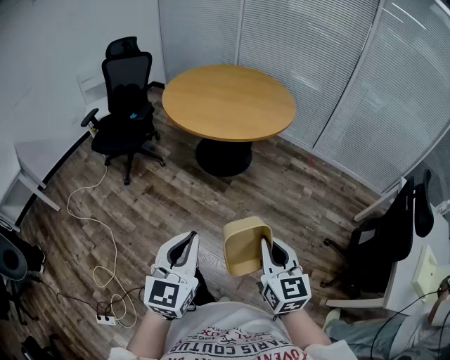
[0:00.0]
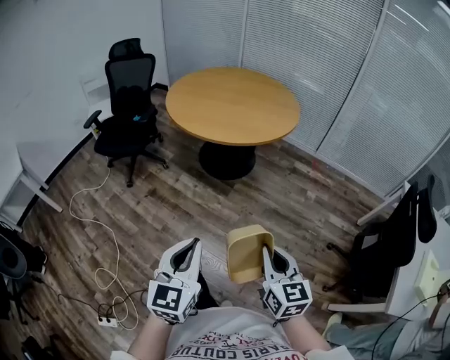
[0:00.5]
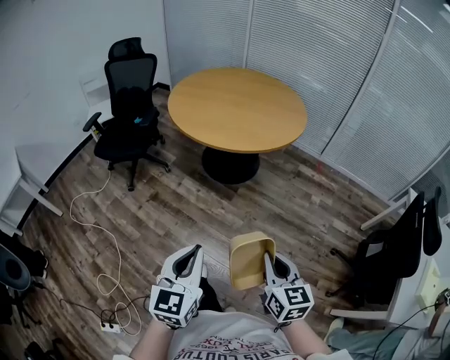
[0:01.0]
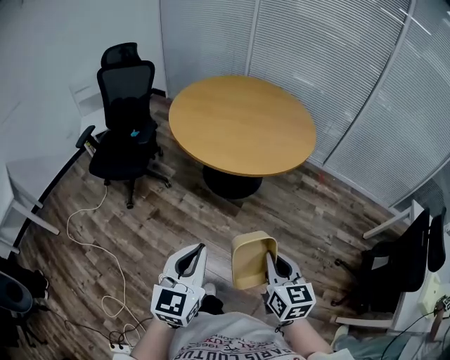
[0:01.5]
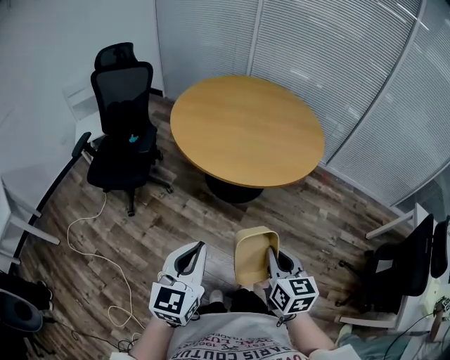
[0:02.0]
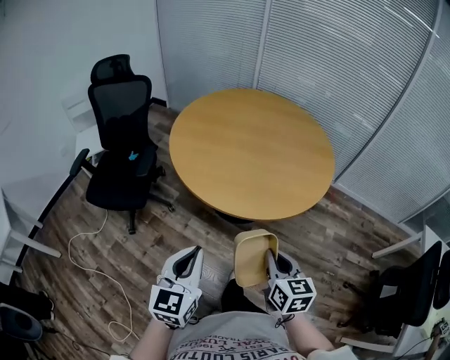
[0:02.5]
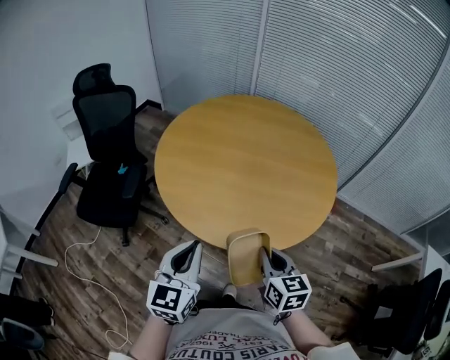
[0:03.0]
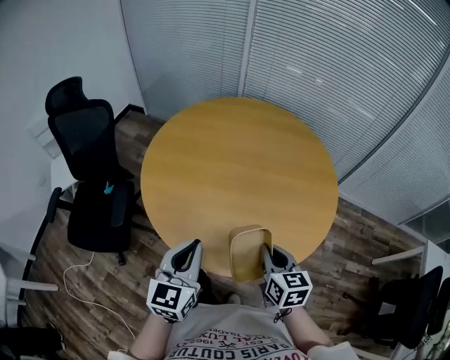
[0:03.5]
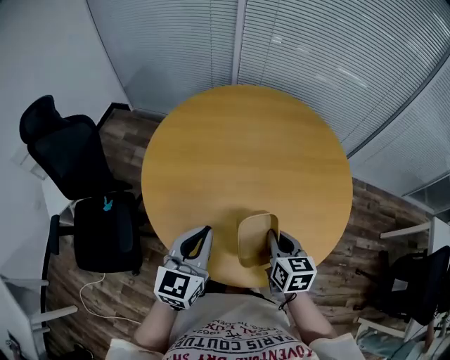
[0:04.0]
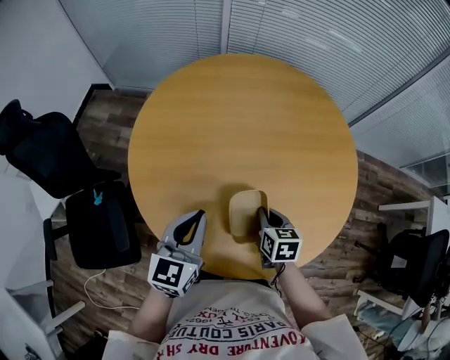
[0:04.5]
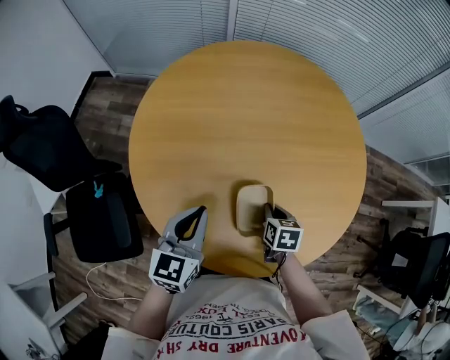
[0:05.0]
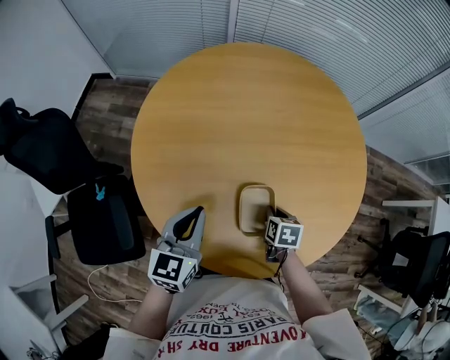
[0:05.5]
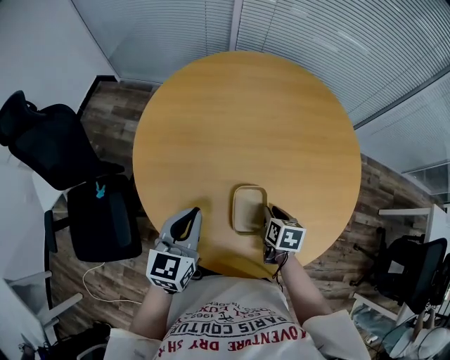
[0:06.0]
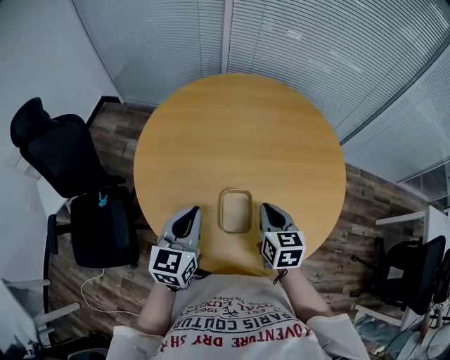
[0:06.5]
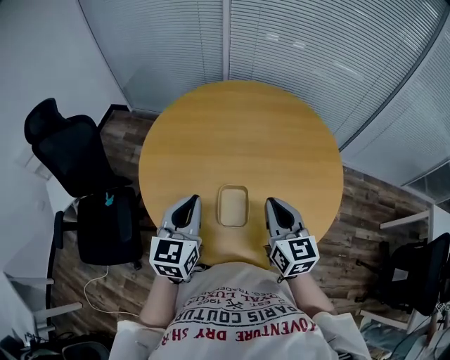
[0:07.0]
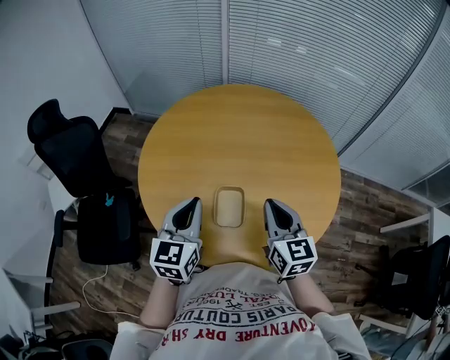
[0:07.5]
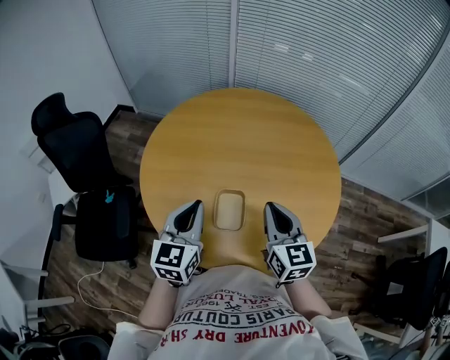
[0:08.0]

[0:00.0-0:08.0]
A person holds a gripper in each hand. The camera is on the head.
0:00.0 to 0:02.0: The two grippers go roughly 30 cm forward and to the left.
0:02.0 to 0:04.0: The pair of grippers is taken forward, roughly 60 cm.
0:04.0 to 0:06.0: The right gripper travels downward and forward by approximately 15 cm, changes its angle by roughly 20 degrees, and opens its fingers, while the left gripper goes approximately 10 cm downward, forward and to the left.
0:06.0 to 0:08.0: The left gripper moves upward, to the right and backward, roughly 15 cm. The right gripper moves upward, roughly 25 cm, tips its fingers upward by some 40 degrees, and closes.

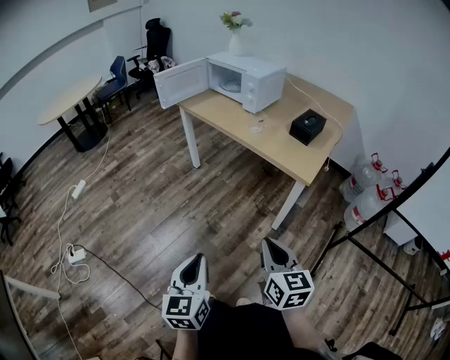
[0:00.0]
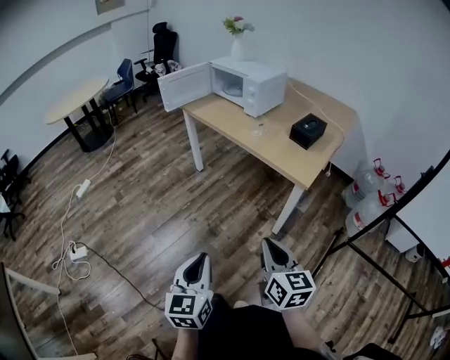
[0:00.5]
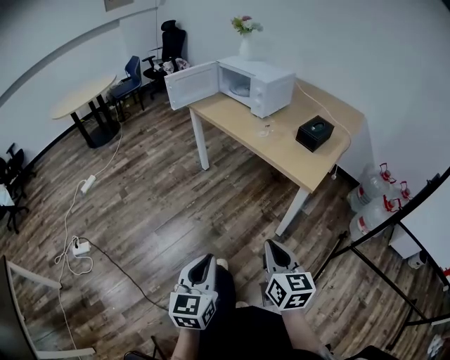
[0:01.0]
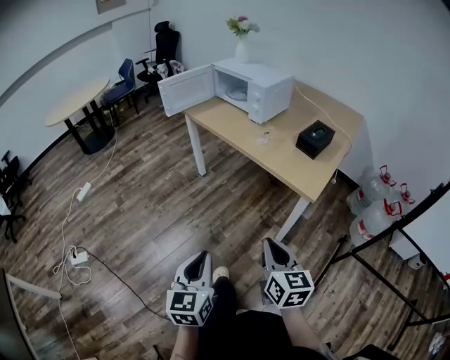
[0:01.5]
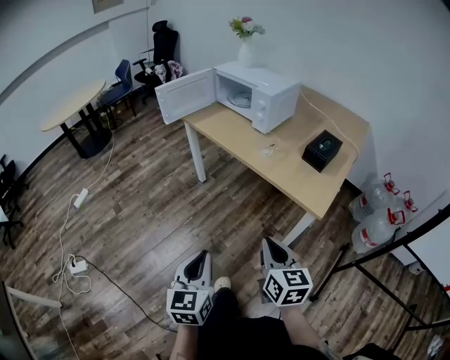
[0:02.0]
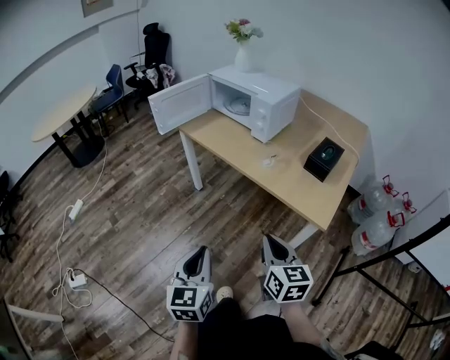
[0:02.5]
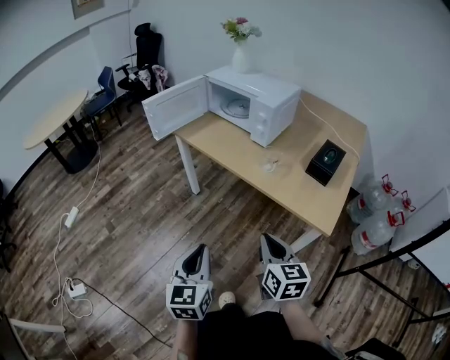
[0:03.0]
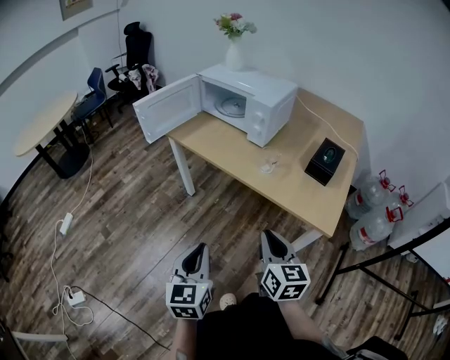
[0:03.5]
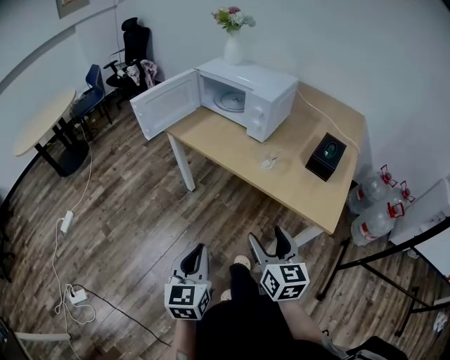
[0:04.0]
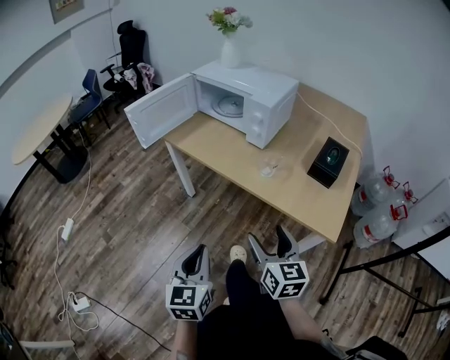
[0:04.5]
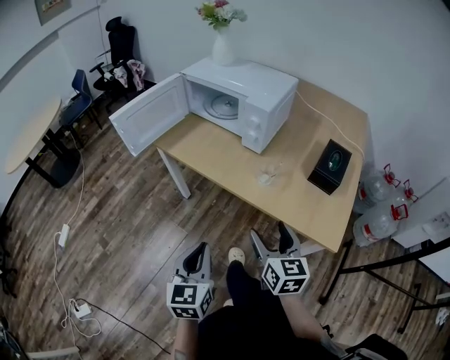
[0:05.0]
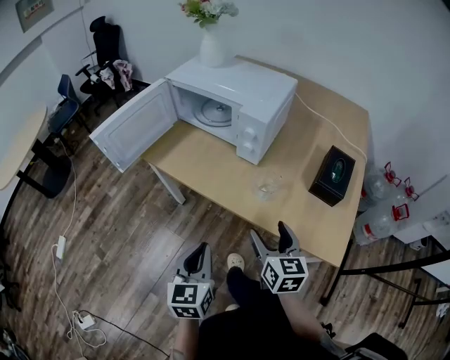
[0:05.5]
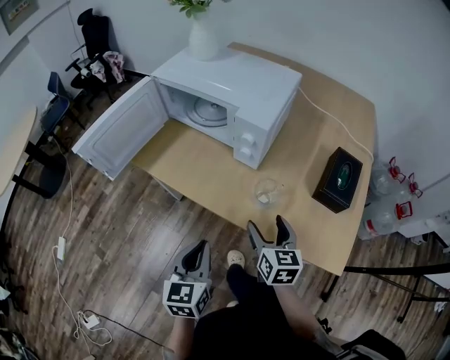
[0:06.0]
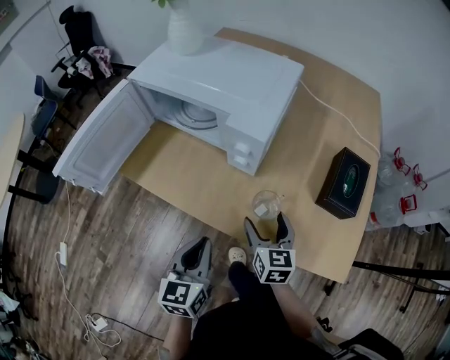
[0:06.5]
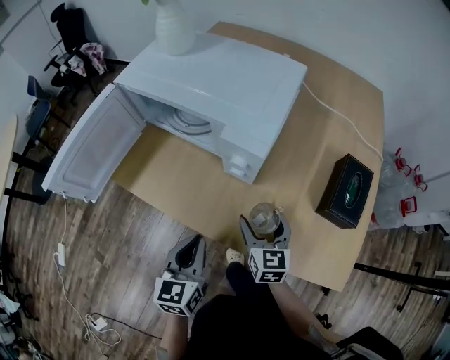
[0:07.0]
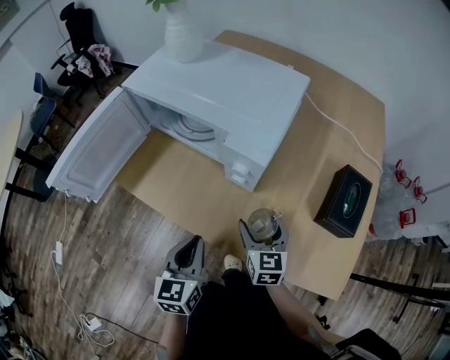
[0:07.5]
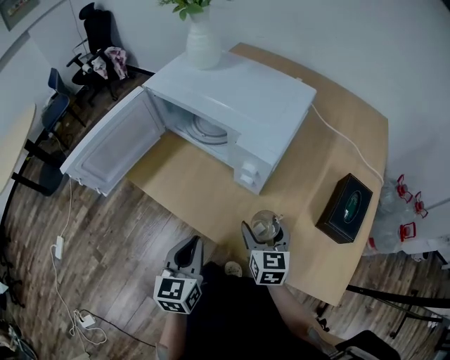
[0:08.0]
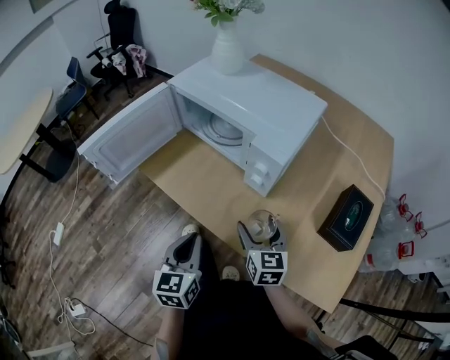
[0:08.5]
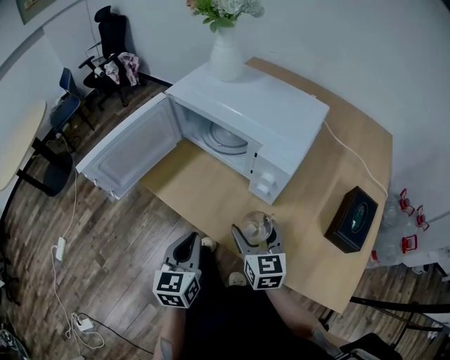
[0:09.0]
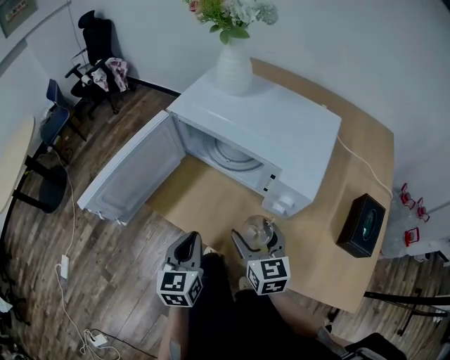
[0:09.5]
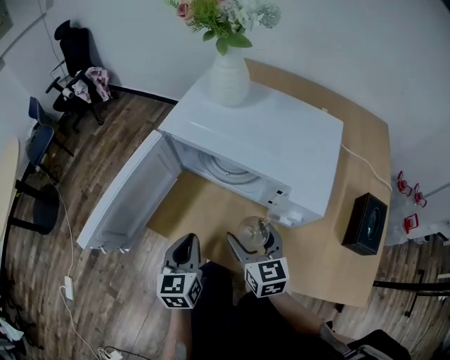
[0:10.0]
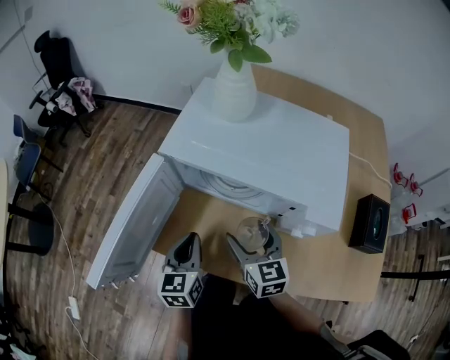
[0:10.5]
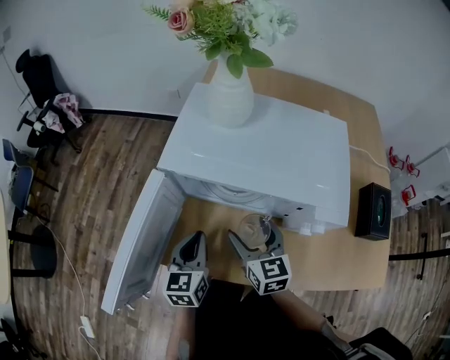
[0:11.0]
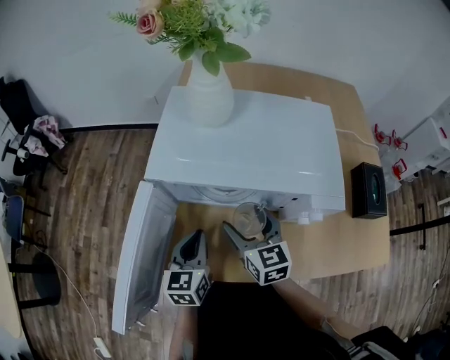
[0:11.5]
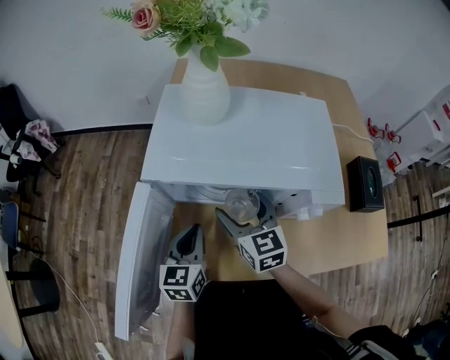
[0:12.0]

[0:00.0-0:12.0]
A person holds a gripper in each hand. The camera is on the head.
0:00.0 to 0:02.0: The grippers both shift forward by roughly 15 cm.
0:02.0 to 0:04.0: The grippers both shift forward by some 15 cm. The right gripper opens.
0:04.0 to 0:06.0: Both grippers travel together forward, about 30 cm.
0:06.0 to 0:08.0: The grippers both shift forward by approximately 10 cm.
0:08.0 to 0:10.0: The left gripper travels forward and to the left by some 20 cm, while the right gripper goes some 20 cm to the left and forward.
0:10.0 to 0:12.0: The left gripper heads forward, covering roughly 15 cm, and rotates approximately 30 degrees. Meanwhile the right gripper moves forward and to the left, approximately 15 cm.

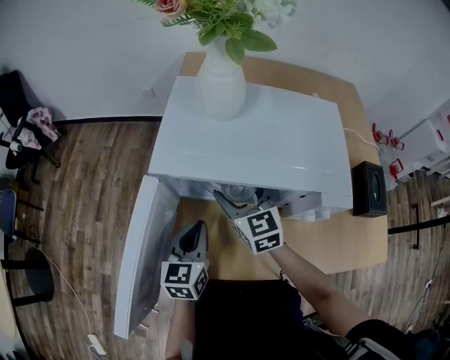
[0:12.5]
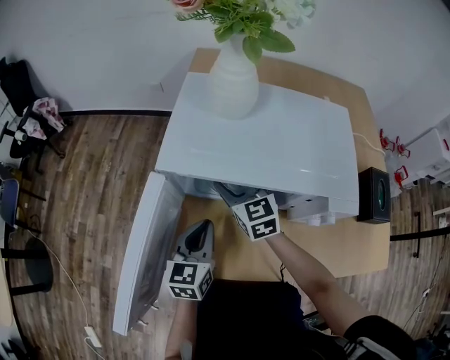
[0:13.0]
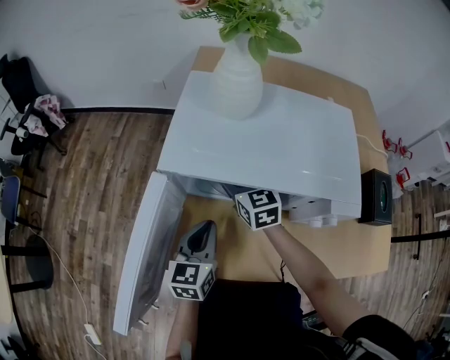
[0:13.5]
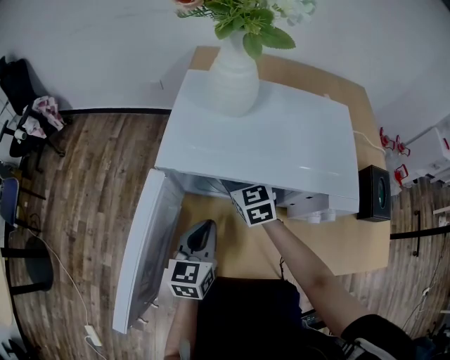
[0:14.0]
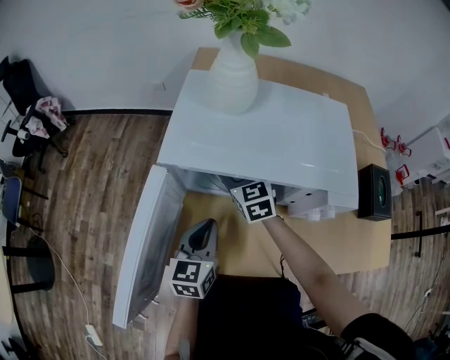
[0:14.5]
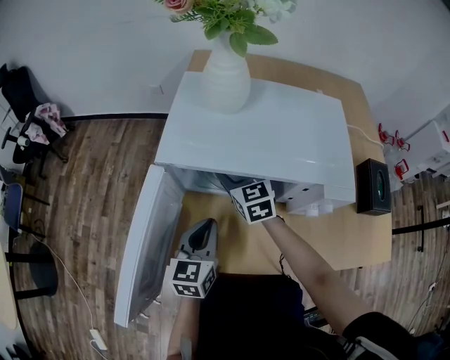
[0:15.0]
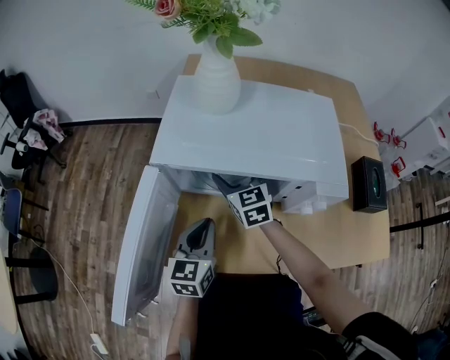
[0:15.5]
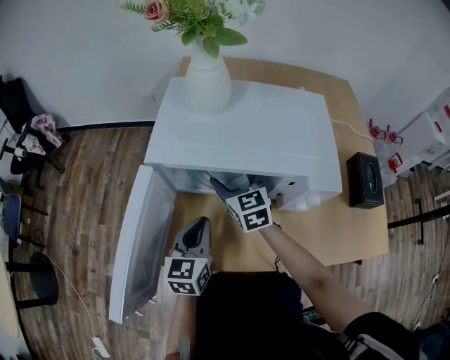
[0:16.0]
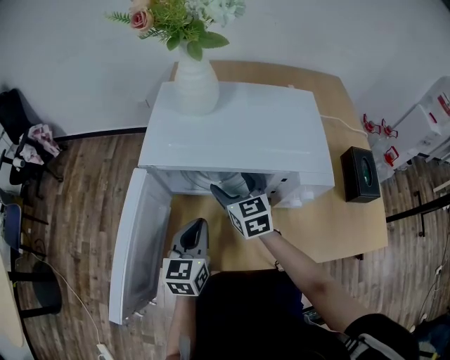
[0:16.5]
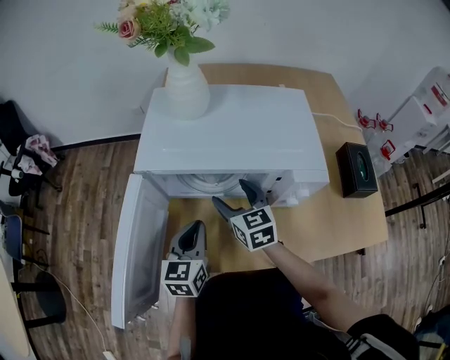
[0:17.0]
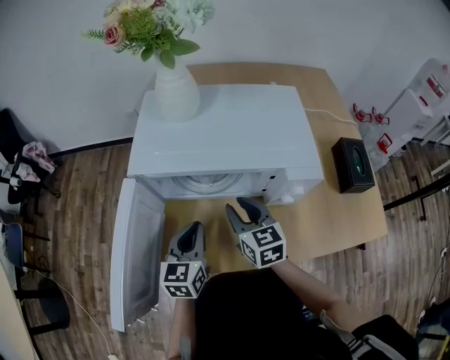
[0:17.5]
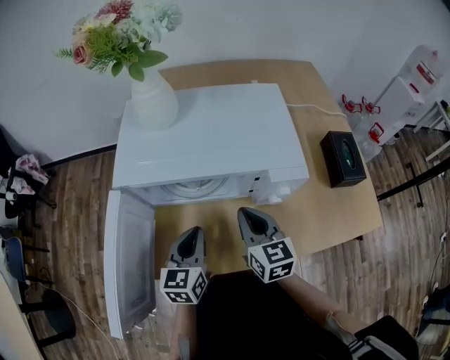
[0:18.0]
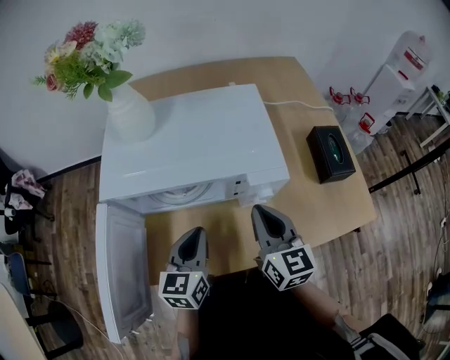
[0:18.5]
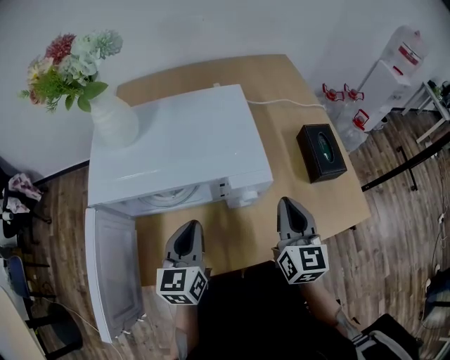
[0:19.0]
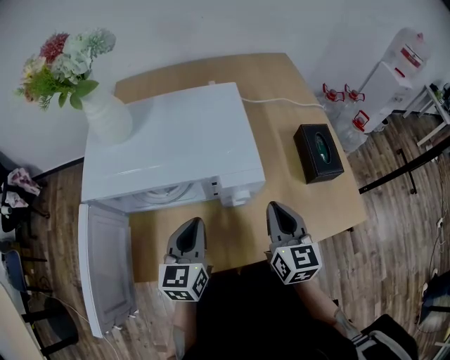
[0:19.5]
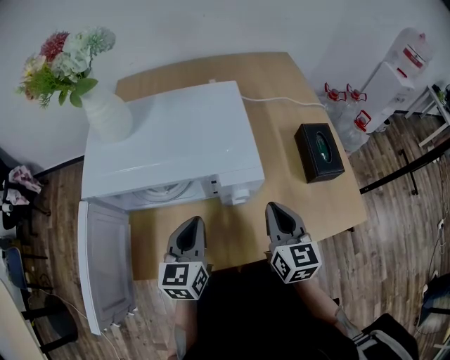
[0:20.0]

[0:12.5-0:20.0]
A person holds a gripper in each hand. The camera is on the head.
0:12.5 to 0:14.5: The right gripper heads forward, covering about 5 cm.
0:14.5 to 0:16.5: The right gripper travels backward by some 5 cm.
0:16.5 to 0:18.0: The right gripper goes about 15 cm backward and to the right, and closes up.
0:18.0 to 0:20.0: The left gripper shifts some 10 cm to the right; the right gripper moves to the right, about 20 cm.
